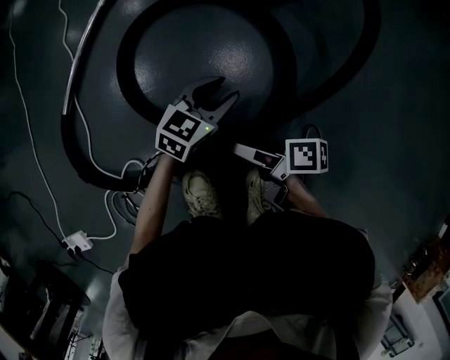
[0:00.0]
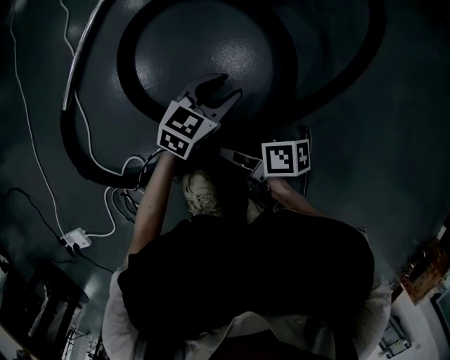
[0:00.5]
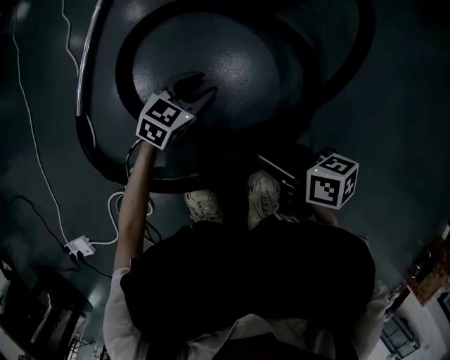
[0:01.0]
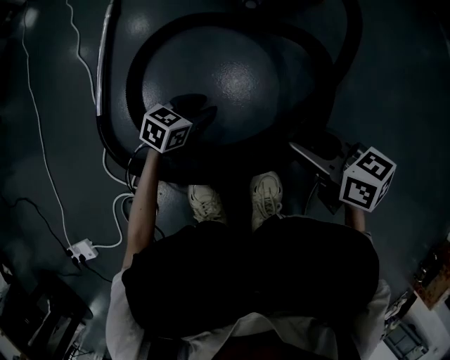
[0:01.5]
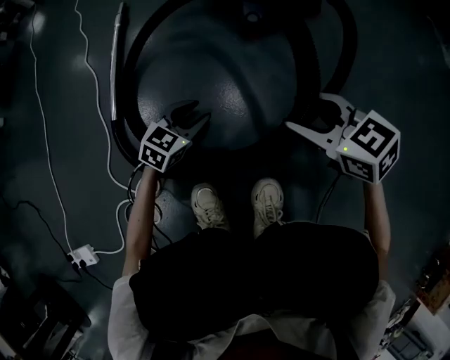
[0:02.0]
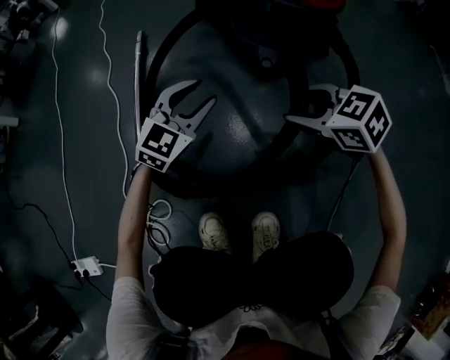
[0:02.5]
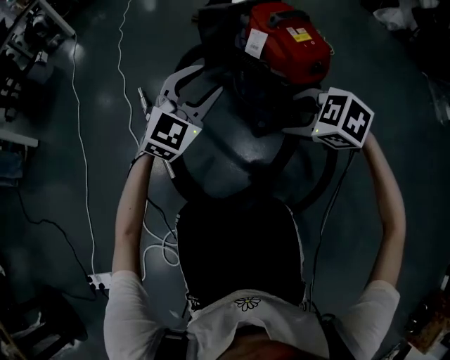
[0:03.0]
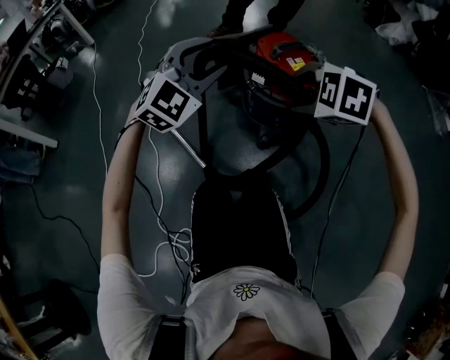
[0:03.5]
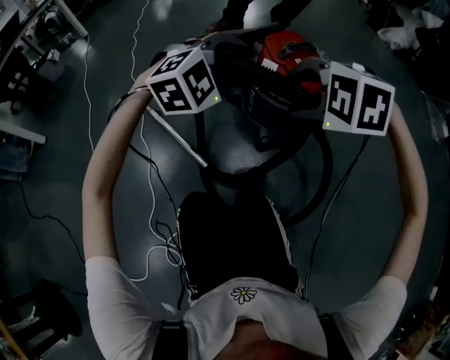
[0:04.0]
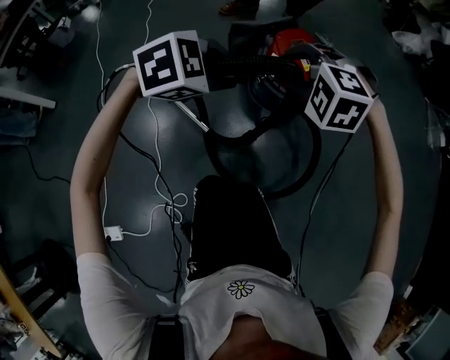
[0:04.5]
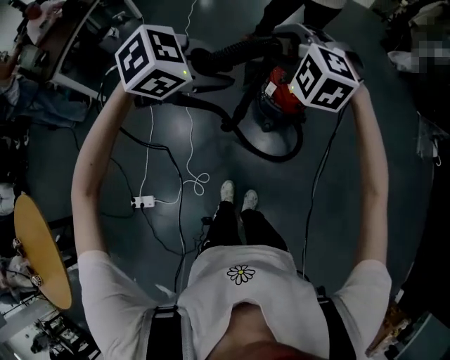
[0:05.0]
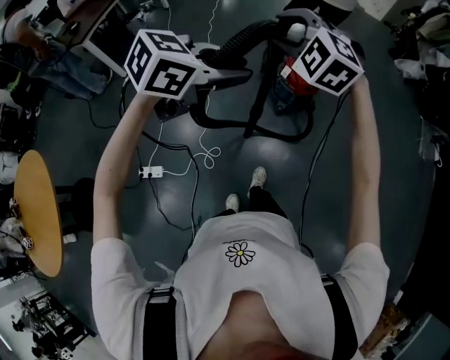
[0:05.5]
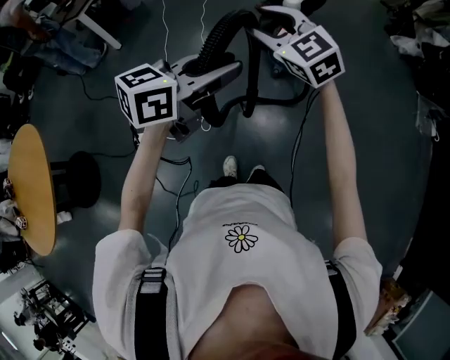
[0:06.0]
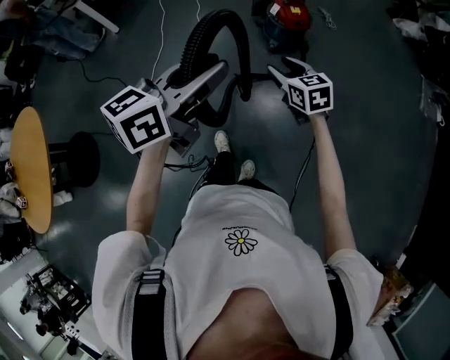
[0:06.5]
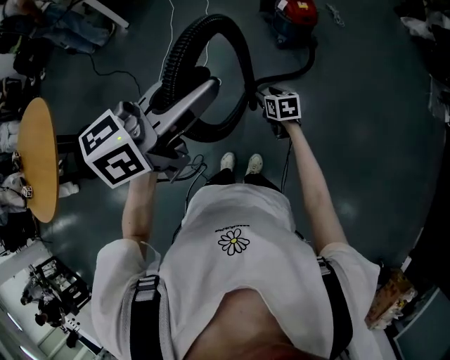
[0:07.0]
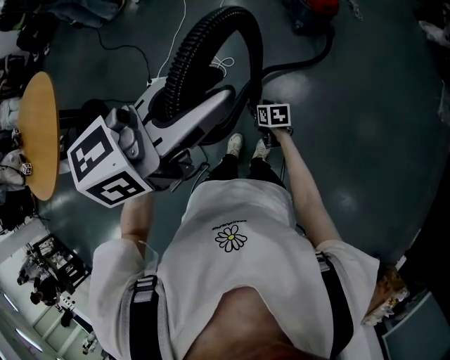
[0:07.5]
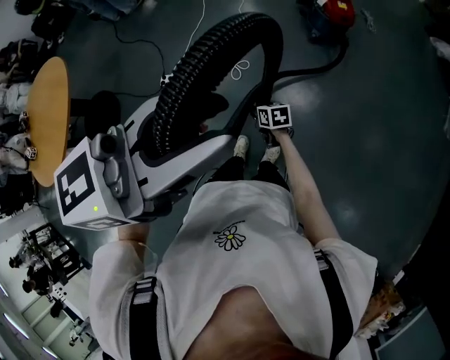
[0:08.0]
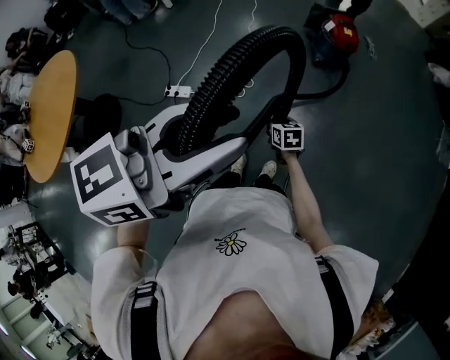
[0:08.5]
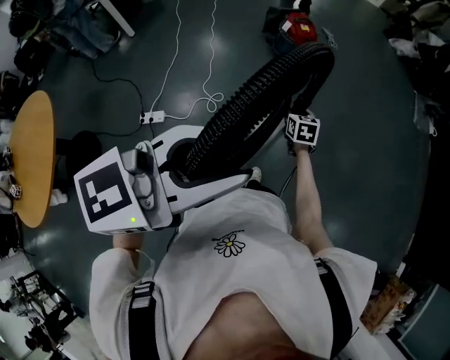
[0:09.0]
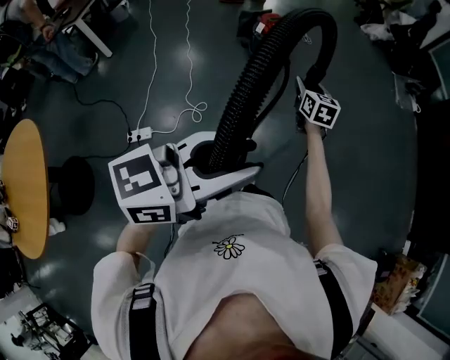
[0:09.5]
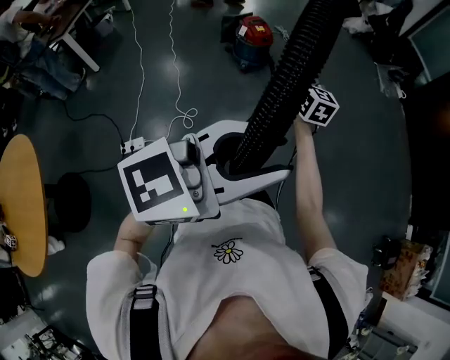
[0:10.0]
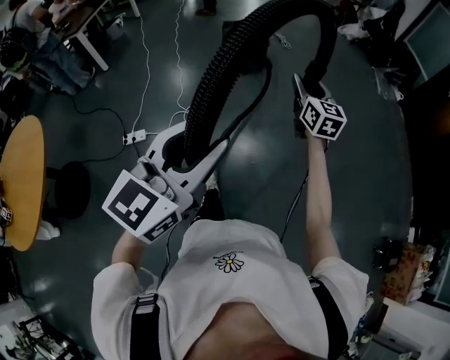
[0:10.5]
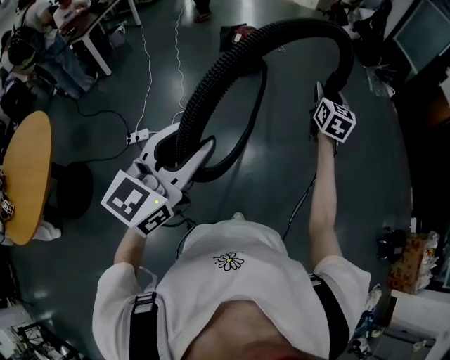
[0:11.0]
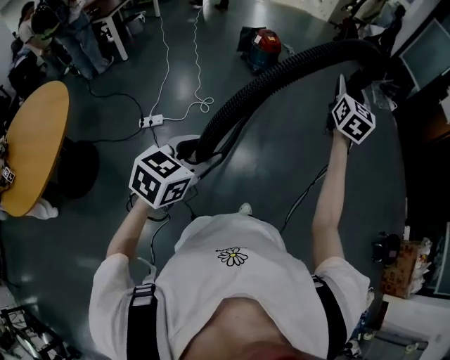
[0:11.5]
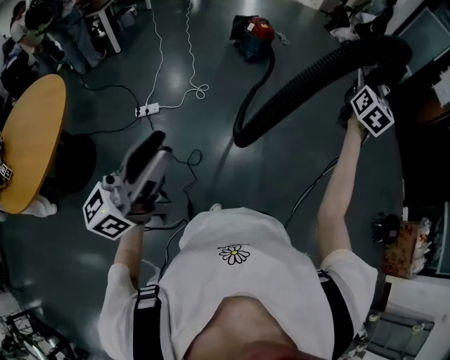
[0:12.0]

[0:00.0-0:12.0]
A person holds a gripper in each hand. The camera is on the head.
0:00.0 to 0:02.0: The left gripper shifts roughly 10 cm to the left, while the right gripper shifts about 20 cm upward, forward and to the right, twists roughly 70 degrees counterclockwise, seen from behind, and closes.
0:02.0 to 0:04.0: The grippers both shift upward and forward by roughly 50 cm. The left gripper rotates around the line of its fingers by some 60 degrees, clockwise from behind; the right gripper twists about 60 degrees counterclockwise, seen from behind.
0:04.0 to 0:06.0: The two grippers travel together, backward, about 50 cm. Both grippers move upward, roughly 60 cm. The right gripper points its fingers about 50 degrees further upward, while the left gripper rotates around the line of its fingers by some 80 degrees, counterclockwise from behind.
0:06.0 to 0:08.0: The left gripper is displaced backward by some 35 cm; the right gripper is displaced downward and backward by approximately 60 cm, and rolls clockwise, seen from behind, by approximately 60 degrees.
0:08.0 to 0:10.0: The left gripper moves approximately 15 cm, and swivels about 40 degrees; the right gripper travels upward by roughly 40 cm, and tips its fingers upward by about 40 degrees.
0:10.0 to 0:12.0: The left gripper travels backward by about 50 cm, and turns by some 40 degrees. Meanwhile the right gripper shifts about 50 cm backward and to the right, and swivels roughly 30 degrees.

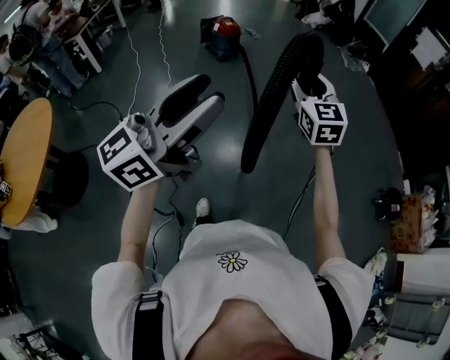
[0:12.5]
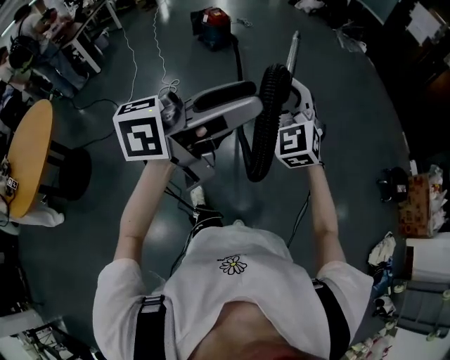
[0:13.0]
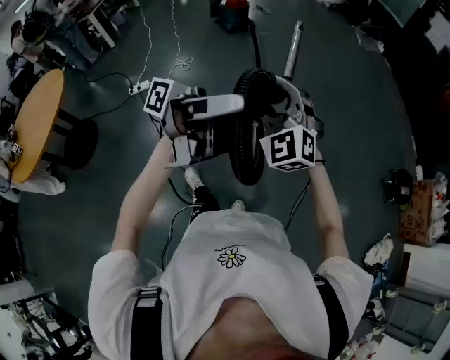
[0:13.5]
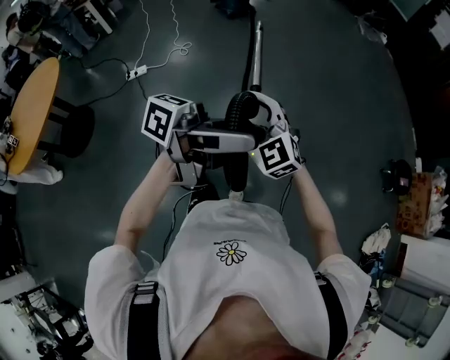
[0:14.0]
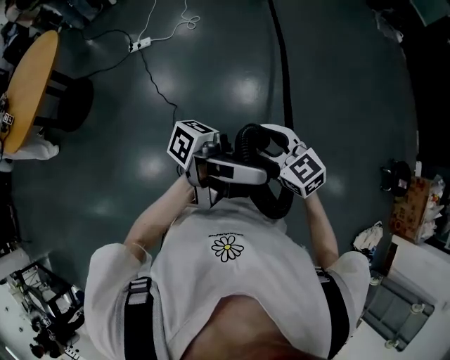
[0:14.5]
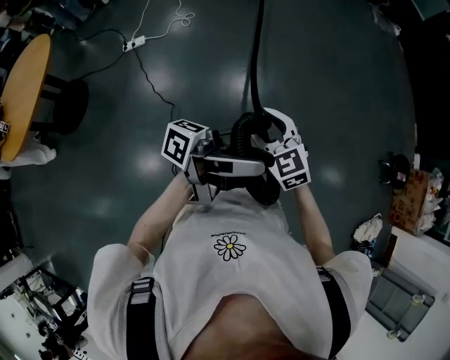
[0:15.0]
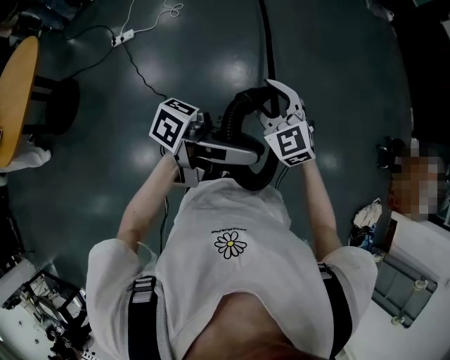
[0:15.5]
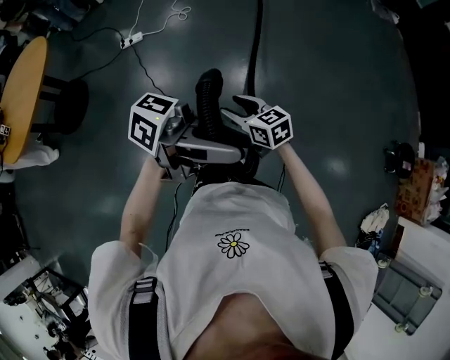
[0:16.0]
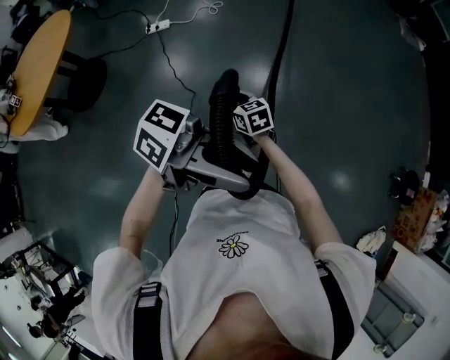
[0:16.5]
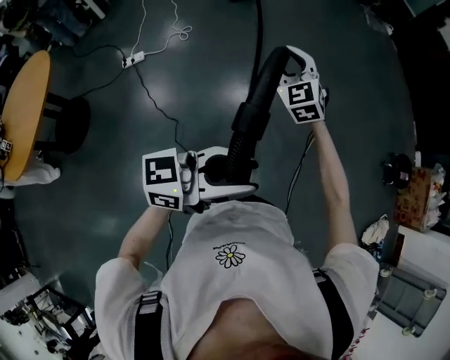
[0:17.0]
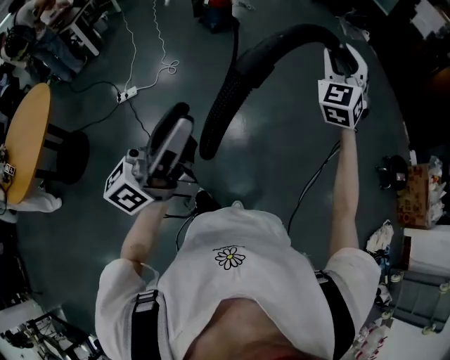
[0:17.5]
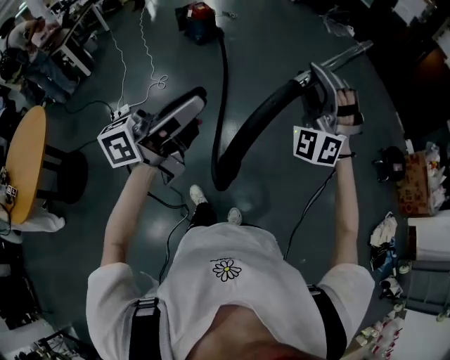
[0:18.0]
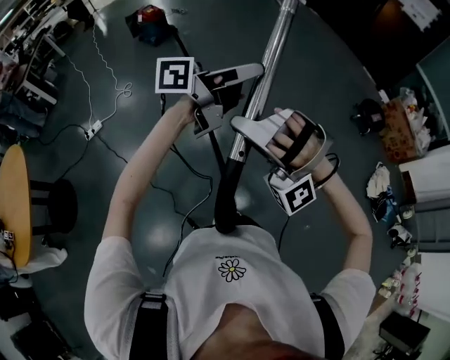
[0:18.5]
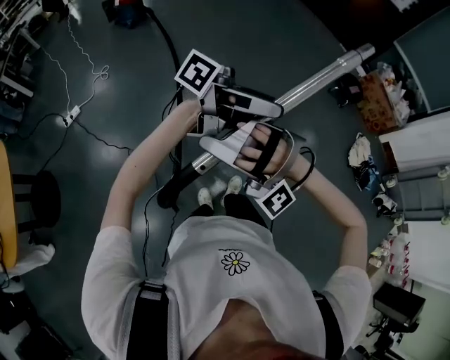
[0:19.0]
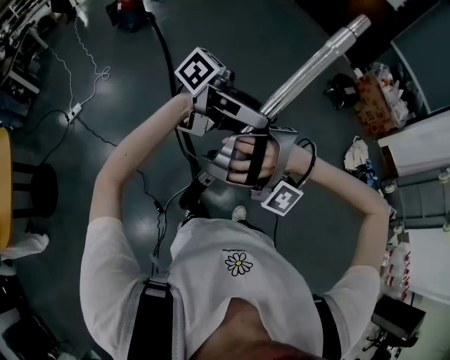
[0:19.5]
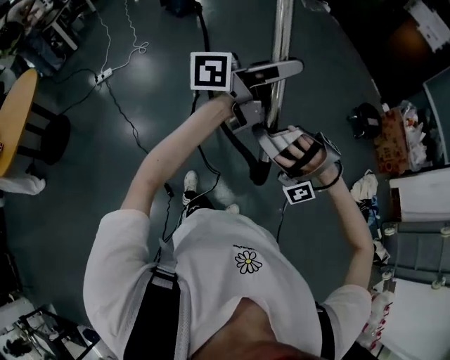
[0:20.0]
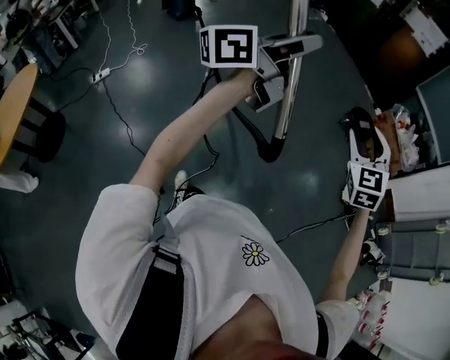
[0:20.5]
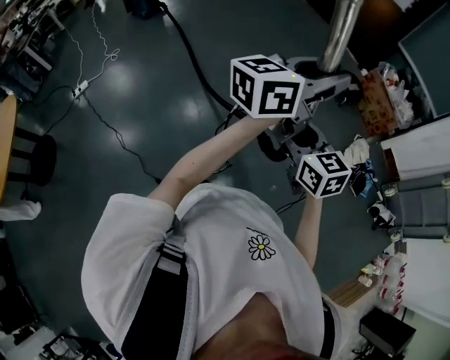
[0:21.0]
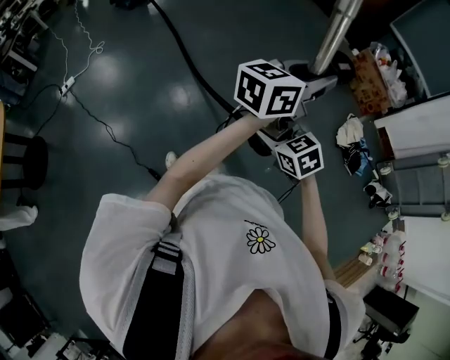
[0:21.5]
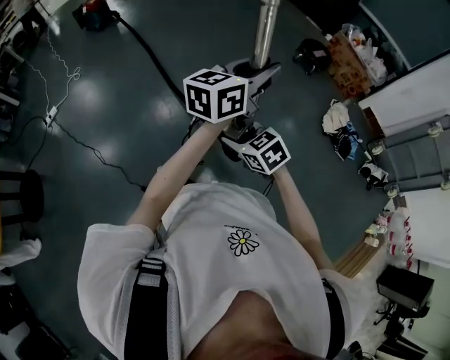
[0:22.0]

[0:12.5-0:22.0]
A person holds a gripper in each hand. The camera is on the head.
0:12.5 to 0:14.5: The left gripper ends up approximately 35 cm from where it was, and rotates around the line of its fingers by roughly 70 degrees, counterclockwise from behind; the right gripper ends up about 40 cm from where it was, and rotates approximately 50 degrees.
0:14.5 to 0:16.5: The right gripper ends up some 25 cm from where it was, and turns by roughly 20 degrees. The left gripper ends up some 10 cm from where it was, and swivels some 30 degrees.
0:16.5 to 0:18.0: The right gripper goes approximately 40 cm upward, and tilts its fingers some 40 degrees upward; the left gripper ends up roughly 20 cm from where it was, and changes its angle by roughly 30 degrees.
0:18.0 to 0:20.0: The right gripper ends up some 50 cm from where it was, and rotates around the line of its fingers by approximately 50 degrees, counterclockwise from behind, while the left gripper shifts by roughly 50 cm, turns by approximately 20 degrees, and opens and closes again.
0:20.0 to 0:22.0: The left gripper heads to the right and downward, covering approximately 20 cm, and turns by roughly 30 degrees. Meanwhile the right gripper is displaced downward and to the right by about 15 cm, and rotates around the line of its fingers by roughly 130 degrees, clockwise from behind.

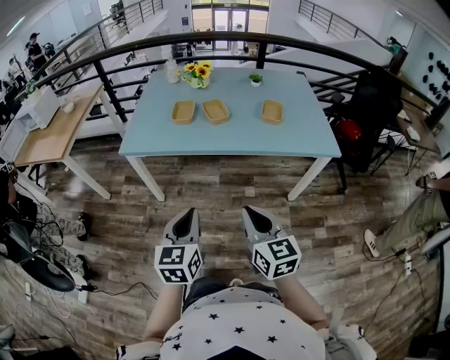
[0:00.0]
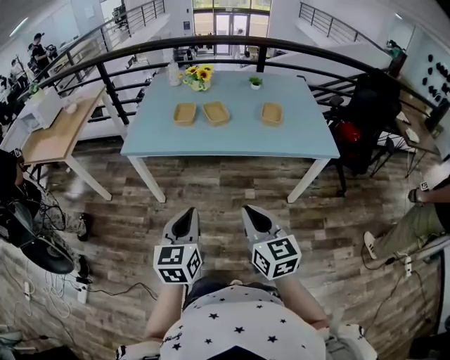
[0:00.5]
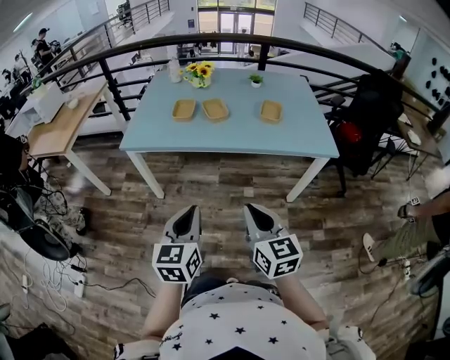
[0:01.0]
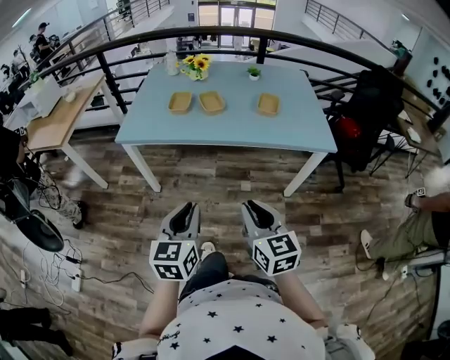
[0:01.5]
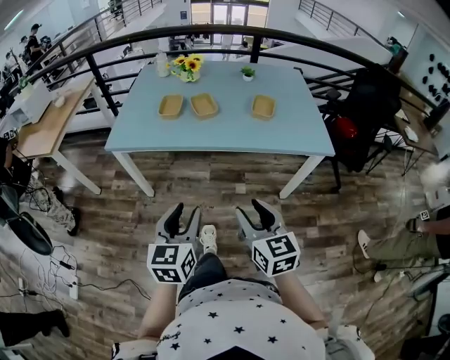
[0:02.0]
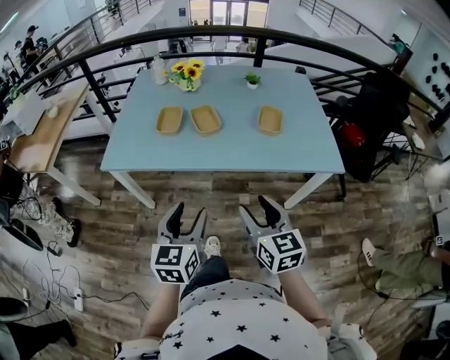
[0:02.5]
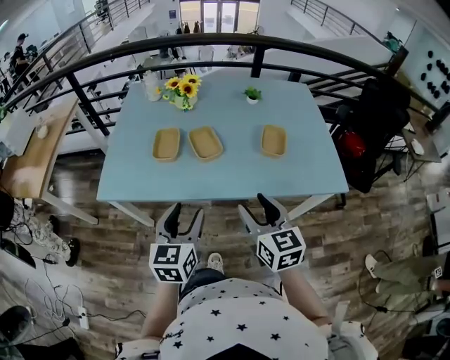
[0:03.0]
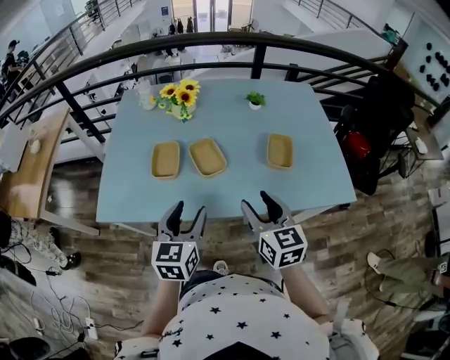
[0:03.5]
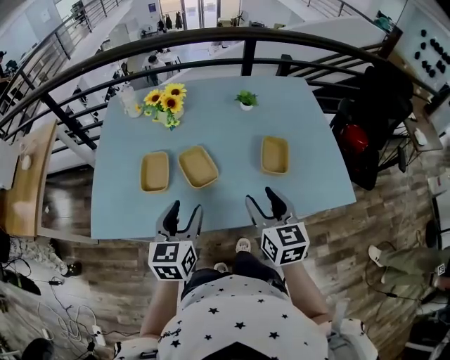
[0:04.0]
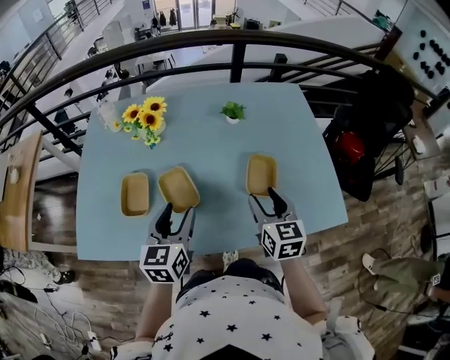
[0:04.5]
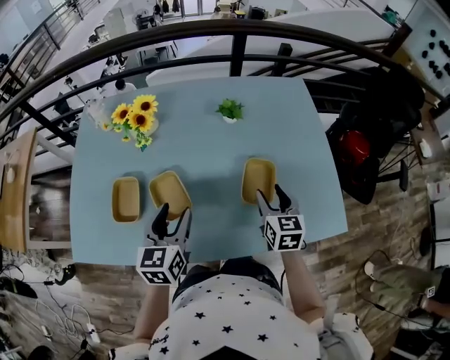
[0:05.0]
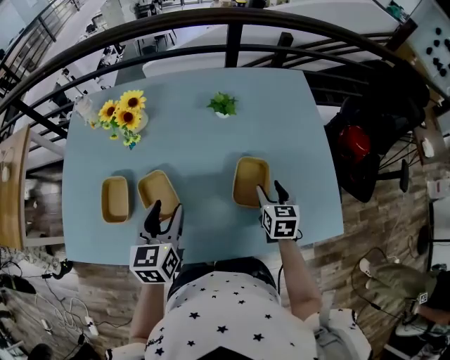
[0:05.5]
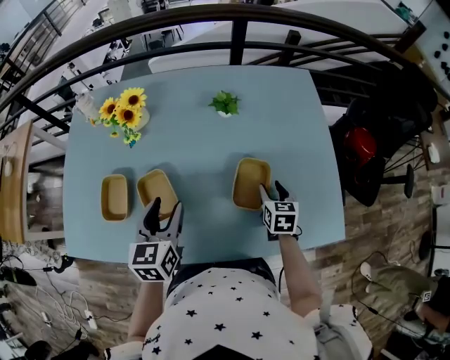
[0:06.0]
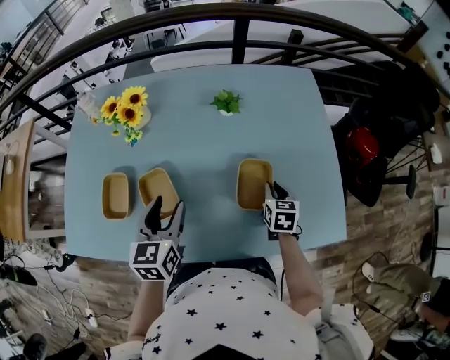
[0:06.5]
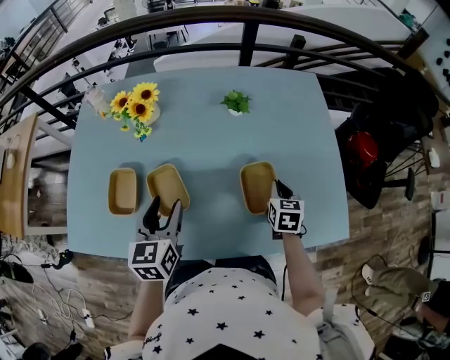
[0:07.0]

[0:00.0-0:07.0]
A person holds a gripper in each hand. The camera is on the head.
0:00.0 to 0:02.0: The right gripper travels to the right by about 5 cm, and opens up. Meanwhile the left gripper ends up roughly 5 cm from where it was, and opens its fingers.
0:02.0 to 0:03.5: Both grippers travel together forward, roughly 35 cm.
0:03.5 to 0:05.0: The right gripper is displaced forward, to the right and downward by roughly 30 cm. The left gripper is displaced forward and to the right by roughly 20 cm.
0:05.0 to 0:07.0: The right gripper goes some 10 cm downward, and closes up.
